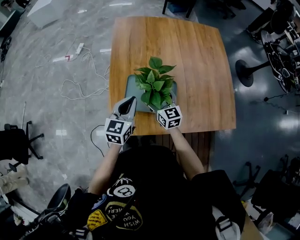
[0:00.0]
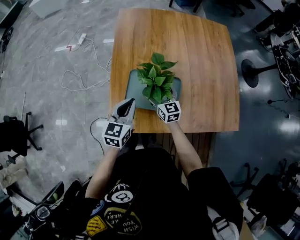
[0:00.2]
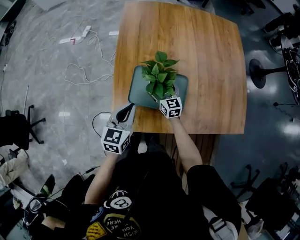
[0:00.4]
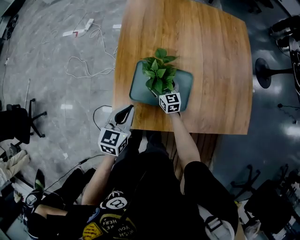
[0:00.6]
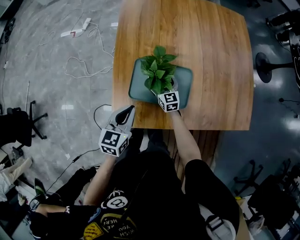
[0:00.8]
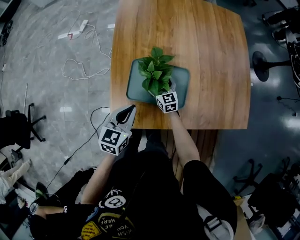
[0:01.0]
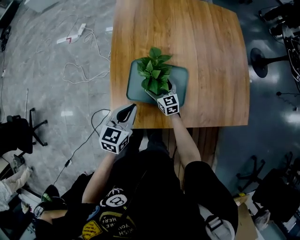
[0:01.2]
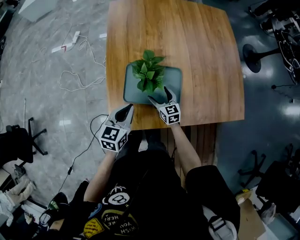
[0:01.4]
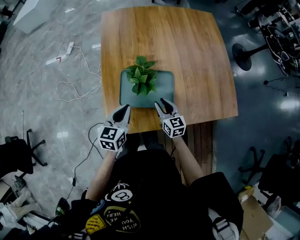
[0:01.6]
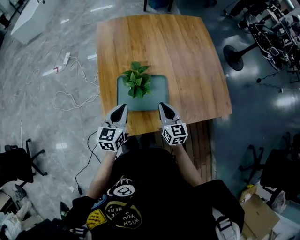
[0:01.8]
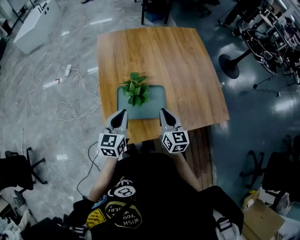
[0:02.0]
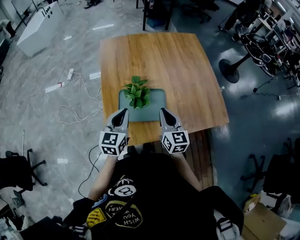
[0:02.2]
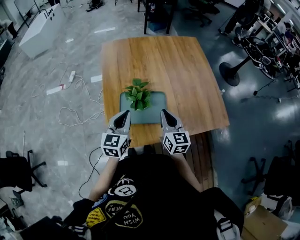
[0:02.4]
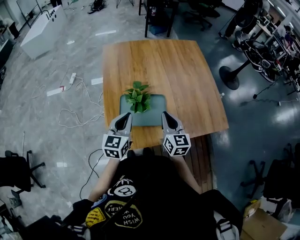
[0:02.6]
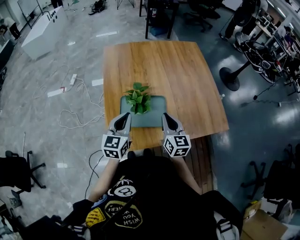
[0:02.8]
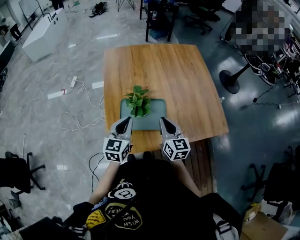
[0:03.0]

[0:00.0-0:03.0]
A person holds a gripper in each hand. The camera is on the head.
0:00.0 to 0:01.6: The left gripper heads downward, covering about 5 cm; the right gripper shifts some 10 cm downward and backward, and closes.
0:01.6 to 0:03.0: The left gripper travels upward by about 10 cm. The right gripper goes about 20 cm upward.

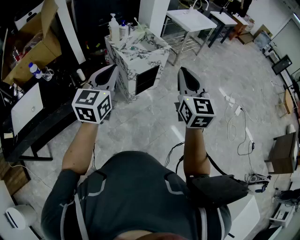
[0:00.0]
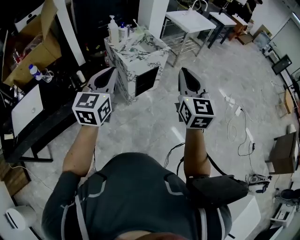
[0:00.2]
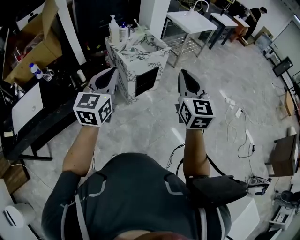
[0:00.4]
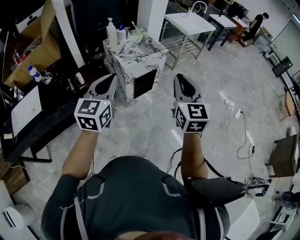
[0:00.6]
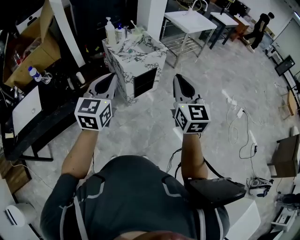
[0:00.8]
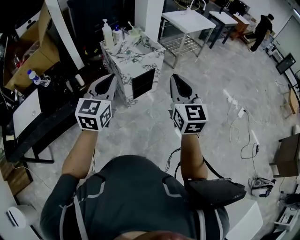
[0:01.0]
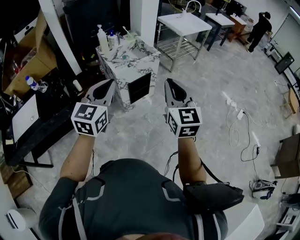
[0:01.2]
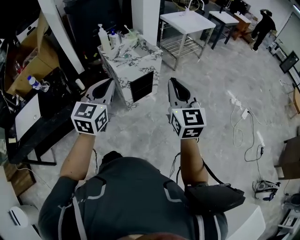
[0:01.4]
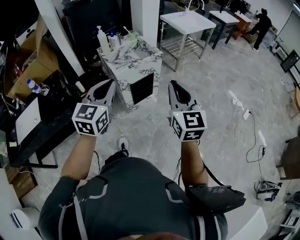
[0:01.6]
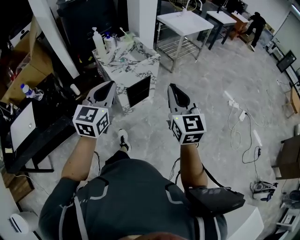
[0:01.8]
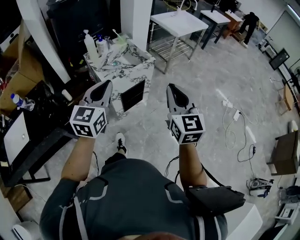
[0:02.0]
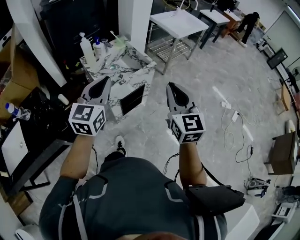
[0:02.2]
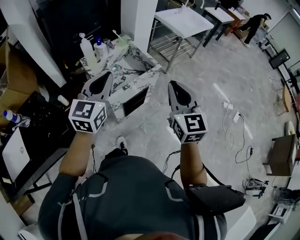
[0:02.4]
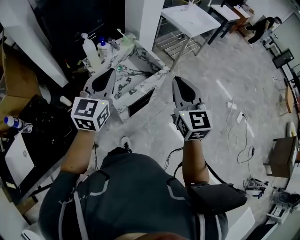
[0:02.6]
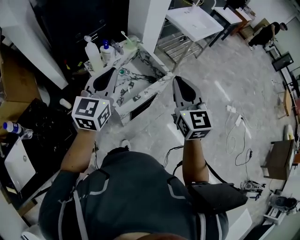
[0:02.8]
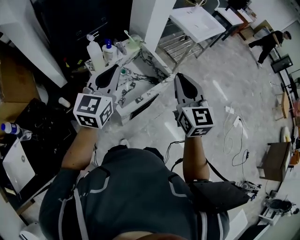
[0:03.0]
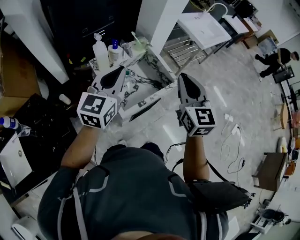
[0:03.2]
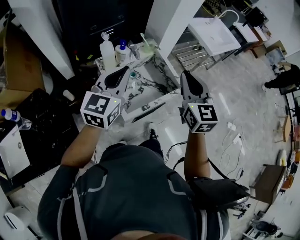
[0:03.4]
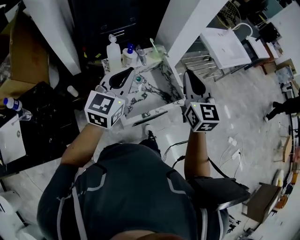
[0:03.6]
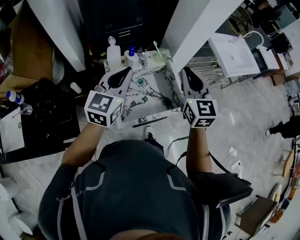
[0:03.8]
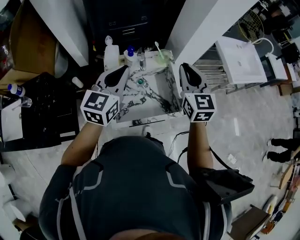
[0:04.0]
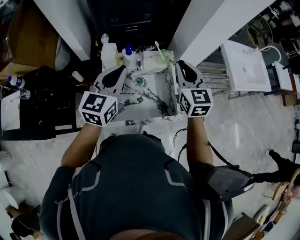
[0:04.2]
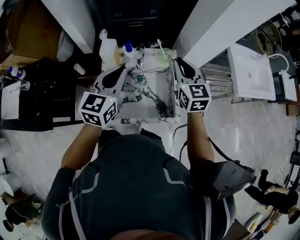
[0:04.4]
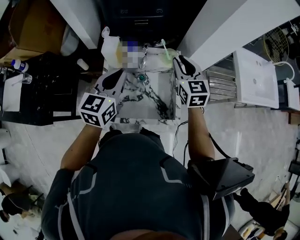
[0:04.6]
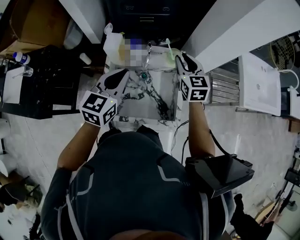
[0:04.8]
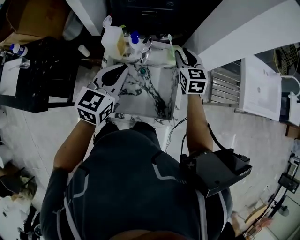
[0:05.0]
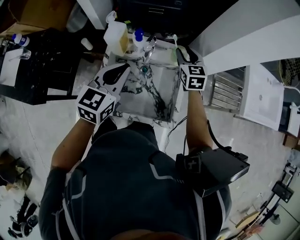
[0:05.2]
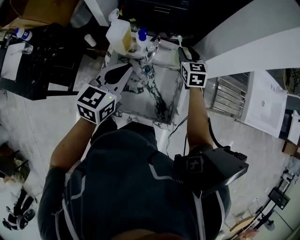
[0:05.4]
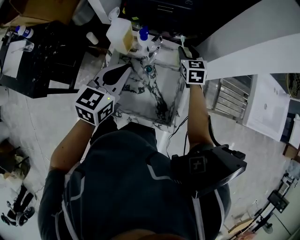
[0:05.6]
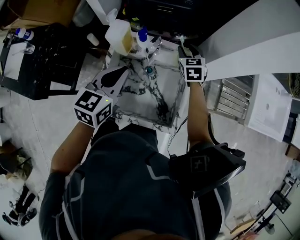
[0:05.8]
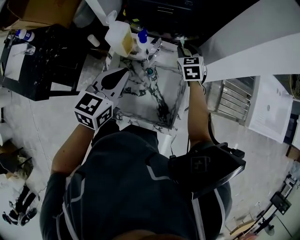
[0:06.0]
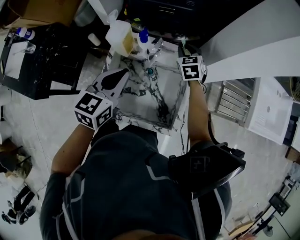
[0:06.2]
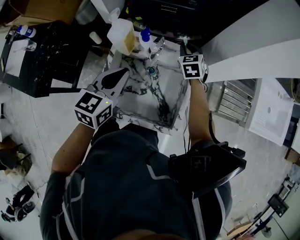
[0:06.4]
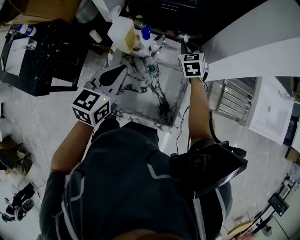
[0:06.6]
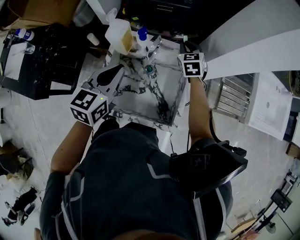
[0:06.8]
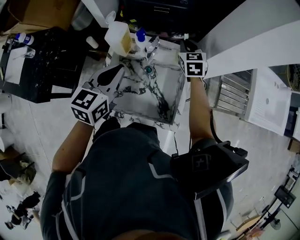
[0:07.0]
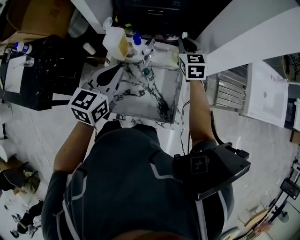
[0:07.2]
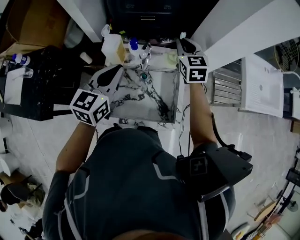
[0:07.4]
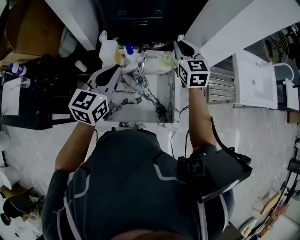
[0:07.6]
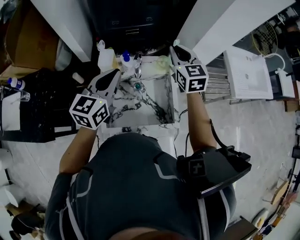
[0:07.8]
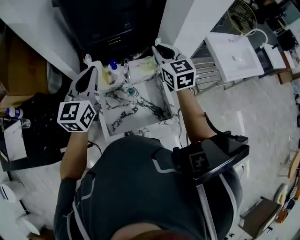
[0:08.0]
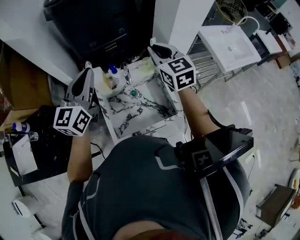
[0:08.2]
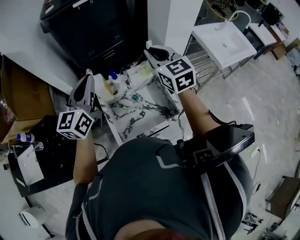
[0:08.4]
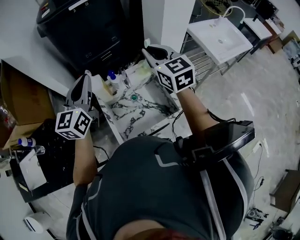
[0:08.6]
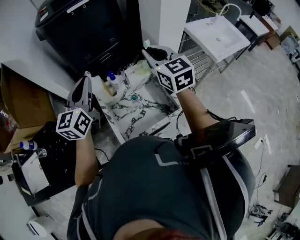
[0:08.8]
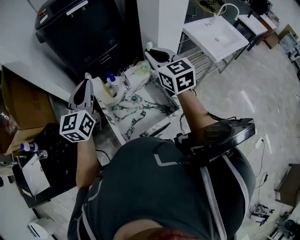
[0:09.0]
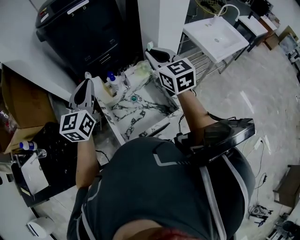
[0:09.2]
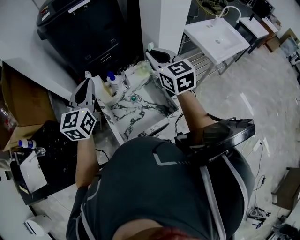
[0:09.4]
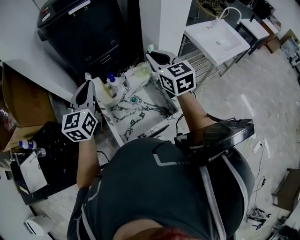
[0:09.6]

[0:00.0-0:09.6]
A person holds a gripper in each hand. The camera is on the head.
0:00.0 to 0:01.6: The left gripper moves to the right, some 15 cm, while the right gripper moves to the right and downward, about 10 cm.
0:01.6 to 0:03.2: The two grippers travel together, forward, about 50 cm.
0:03.2 to 0:04.8: The right gripper ends up about 40 cm from where it was, and turns by roughly 40 degrees, while the left gripper shifts by roughly 20 cm, and swivels approximately 40 degrees.
0:04.8 to 0:06.4: The right gripper goes some 20 cm downward and forward, and changes its angle by approximately 30 degrees. Meanwhile the left gripper heads downward, covering approximately 5 cm.
0:06.4 to 0:08.0: The left gripper is displaced upward by some 15 cm, and turns by roughly 30 degrees; the right gripper travels upward and backward by roughly 30 cm, and swivels roughly 30 degrees.
0:08.0 to 0:09.6: The right gripper heads backward and upward, covering some 10 cm.

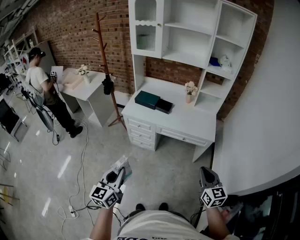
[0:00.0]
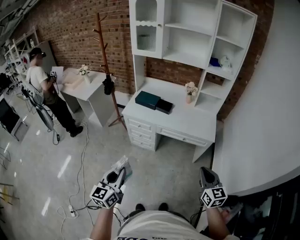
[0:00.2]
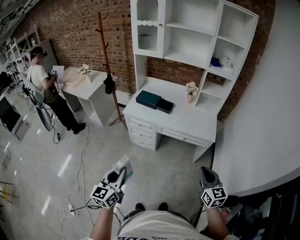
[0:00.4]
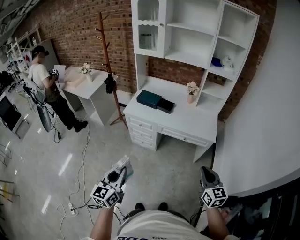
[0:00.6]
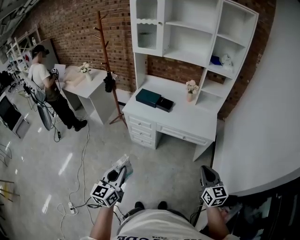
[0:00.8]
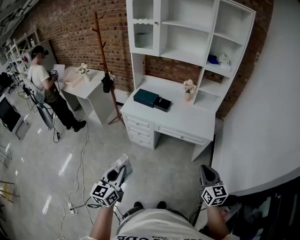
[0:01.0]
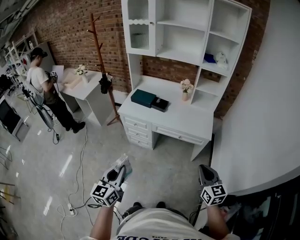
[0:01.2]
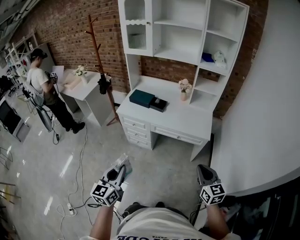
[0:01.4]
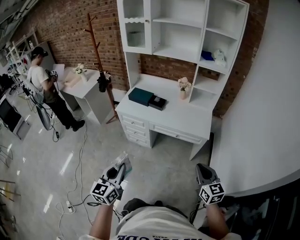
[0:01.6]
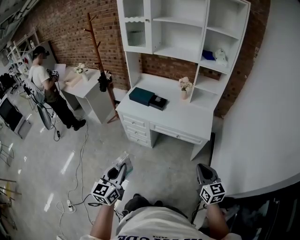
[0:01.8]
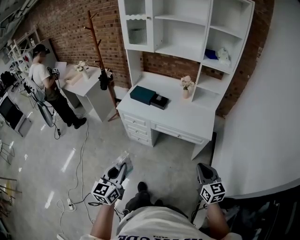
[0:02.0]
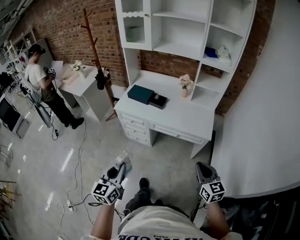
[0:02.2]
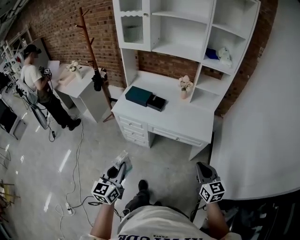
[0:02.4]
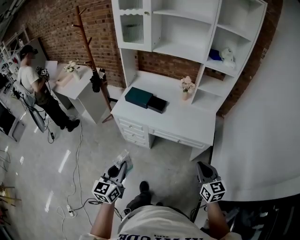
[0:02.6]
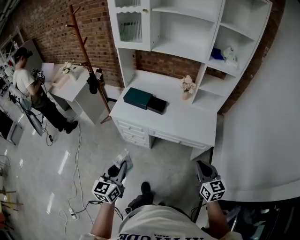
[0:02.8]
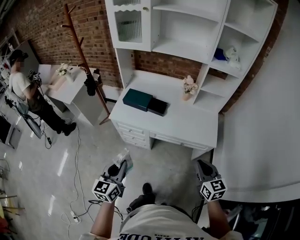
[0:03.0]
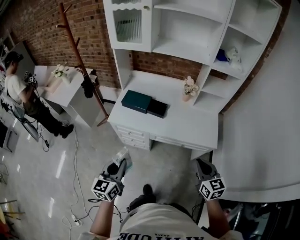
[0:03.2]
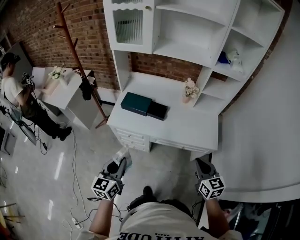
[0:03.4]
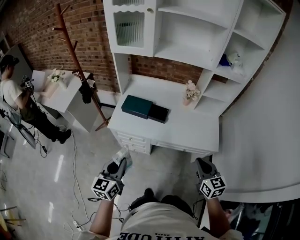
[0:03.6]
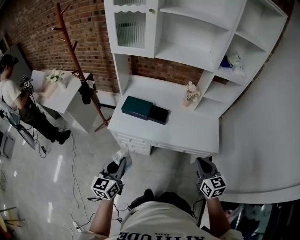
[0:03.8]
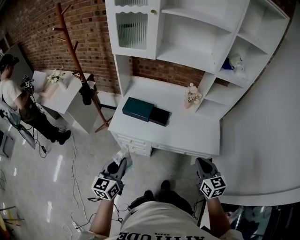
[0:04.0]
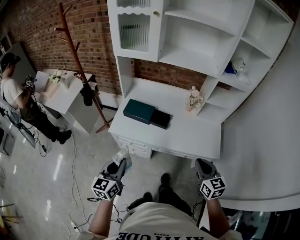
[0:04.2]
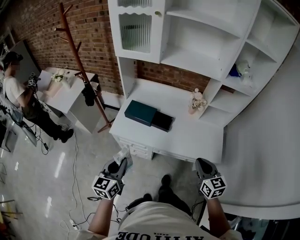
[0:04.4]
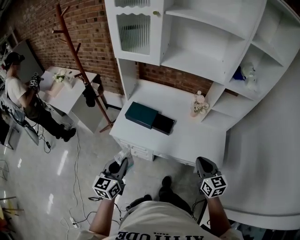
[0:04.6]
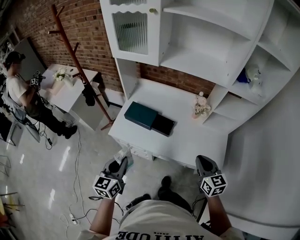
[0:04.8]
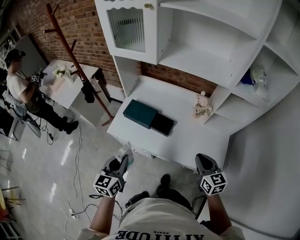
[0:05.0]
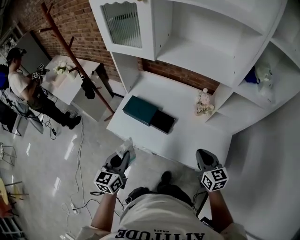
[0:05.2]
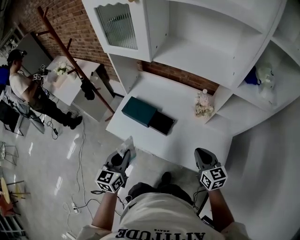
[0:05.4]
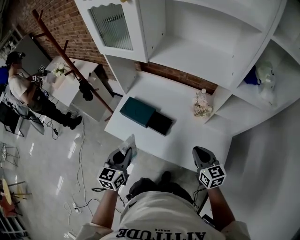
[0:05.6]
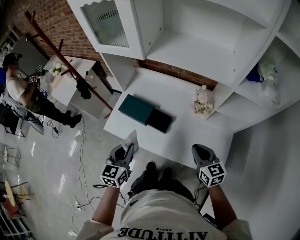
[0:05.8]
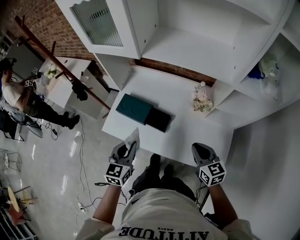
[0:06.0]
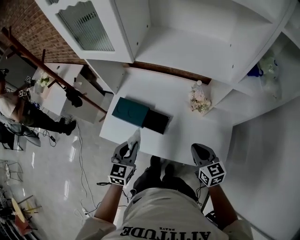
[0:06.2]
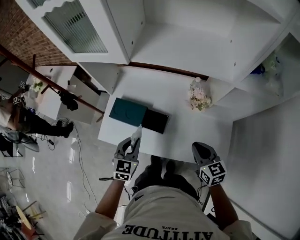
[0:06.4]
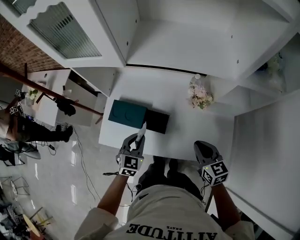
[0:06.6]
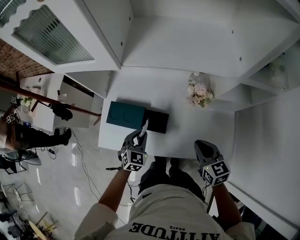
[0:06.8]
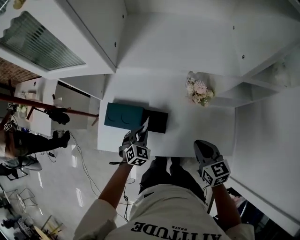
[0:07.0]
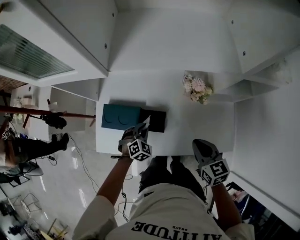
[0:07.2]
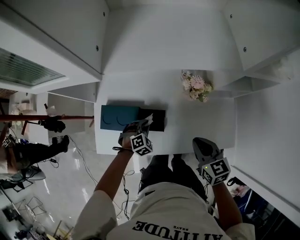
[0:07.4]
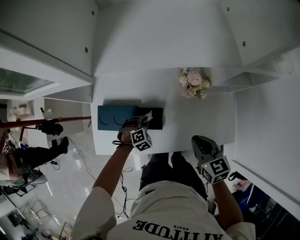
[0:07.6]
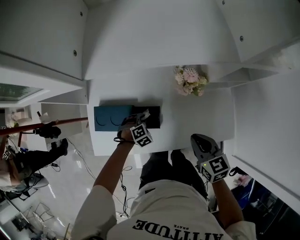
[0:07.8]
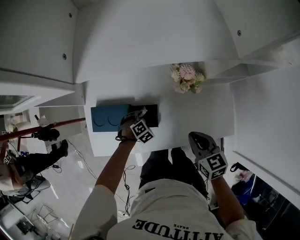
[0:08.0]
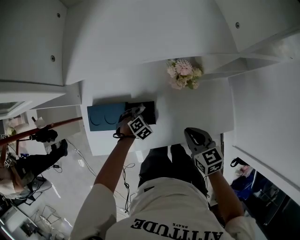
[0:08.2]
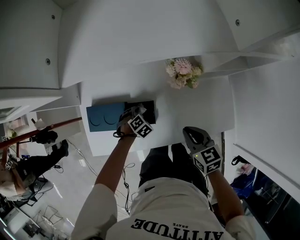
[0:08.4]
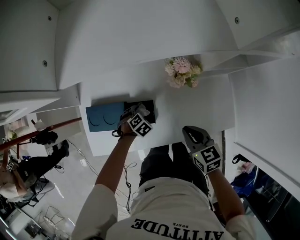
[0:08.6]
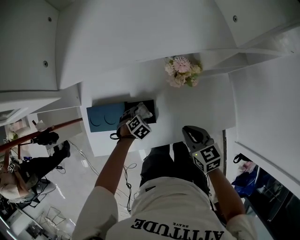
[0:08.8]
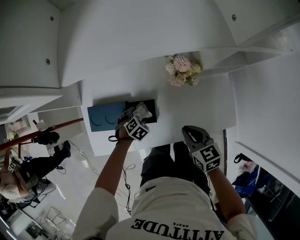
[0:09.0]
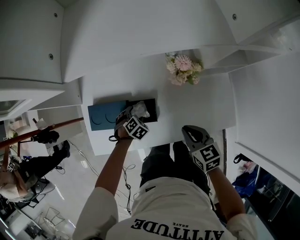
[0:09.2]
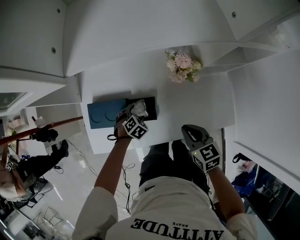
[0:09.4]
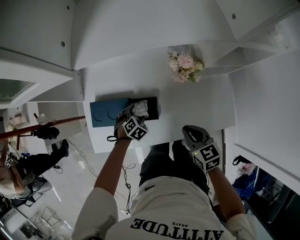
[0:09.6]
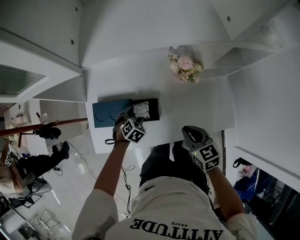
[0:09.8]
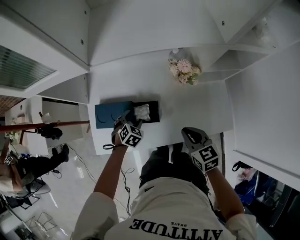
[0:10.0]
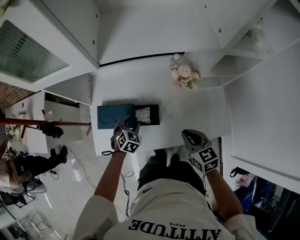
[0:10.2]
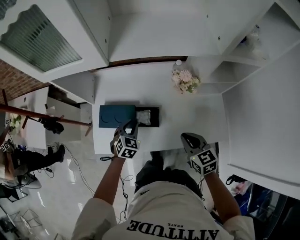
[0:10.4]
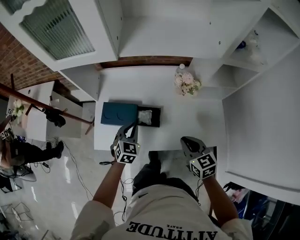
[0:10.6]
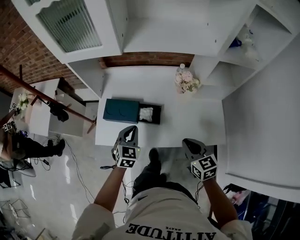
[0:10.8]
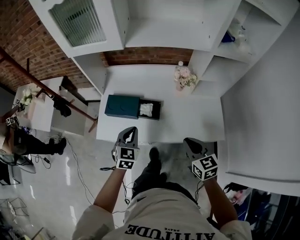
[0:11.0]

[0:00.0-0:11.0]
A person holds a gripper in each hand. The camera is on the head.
0:00.0 to 0:01.6: Both grippers move to the right, roughly 10 cm.
0:01.6 to 0:03.2: The left gripper goes about 25 cm forward. The right gripper is displaced forward and to the left by roughly 25 cm.
0:03.2 to 0:04.8: The two grippers go about 20 cm forward.
0:04.8 to 0:06.2: The left gripper heads forward and to the right, covering some 20 cm; the right gripper goes some 15 cm forward and downward.
0:06.2 to 0:07.8: The left gripper moves downward and forward, approximately 35 cm, and angles its fingers downward, by roughly 40 degrees; the right gripper moves roughly 5 cm, and turns by approximately 20 degrees.
0:07.8 to 0:09.4: The right gripper is displaced downward by approximately 5 cm. The left gripper opens its fingers.
0:09.4 to 0:11.0: The left gripper is displaced upward and backward by approximately 30 cm, angles its fingers upward, by some 40 degrees, and closes up. Meanwhile the right gripper travels backward and upward by some 15 cm.
